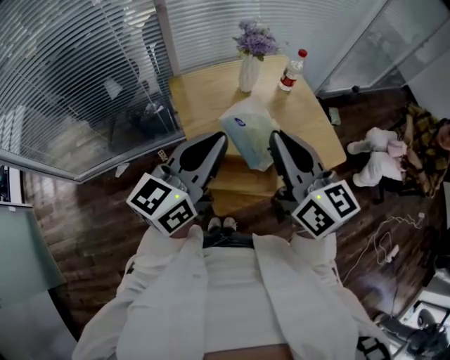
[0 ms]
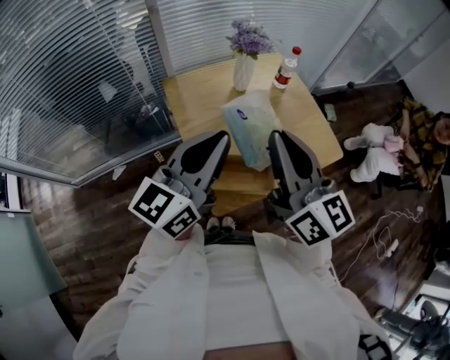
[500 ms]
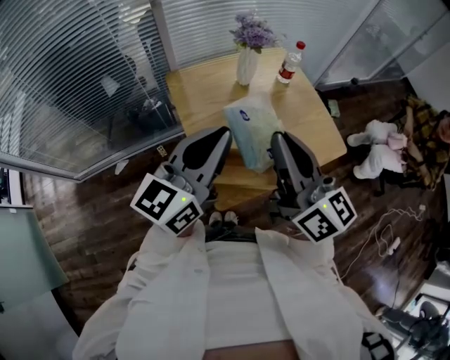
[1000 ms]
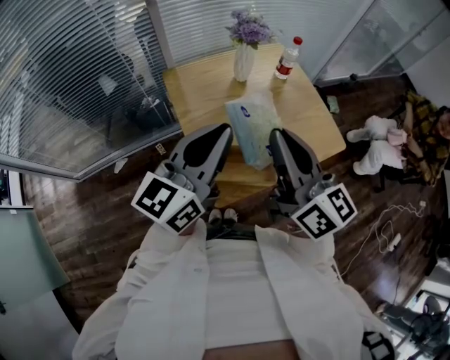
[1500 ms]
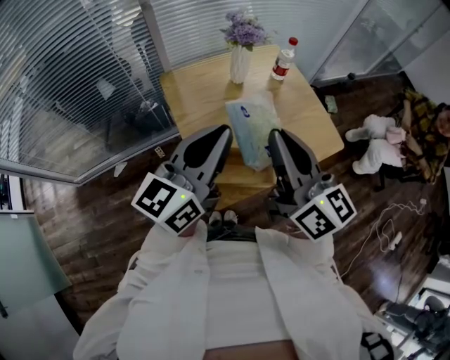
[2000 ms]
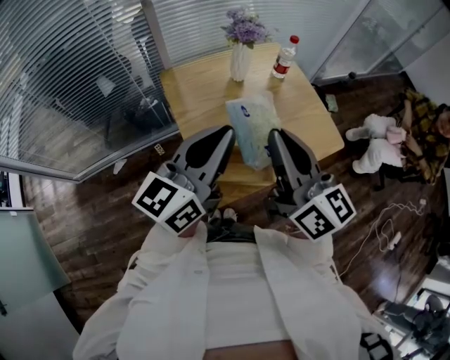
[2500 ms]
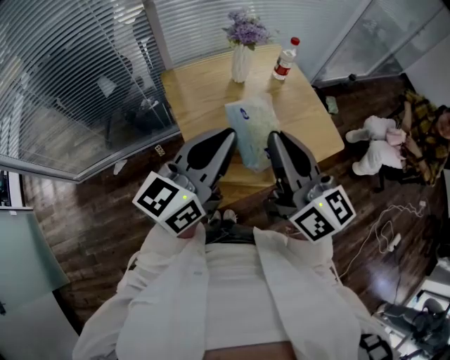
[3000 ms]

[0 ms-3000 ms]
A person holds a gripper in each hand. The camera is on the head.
0 ms to 3000 ms: The grippers move only a little.

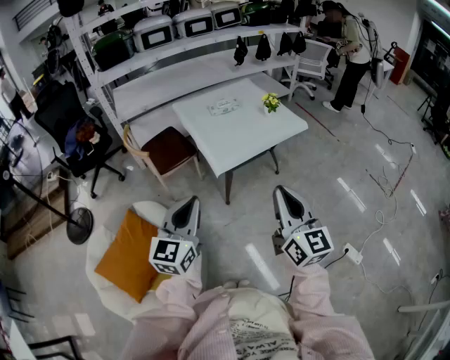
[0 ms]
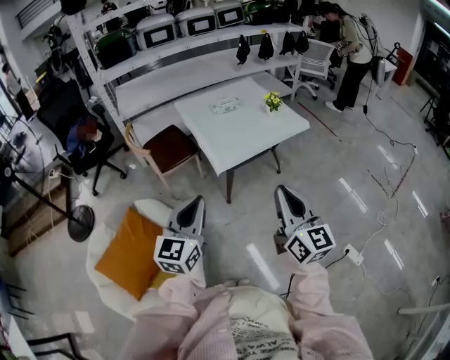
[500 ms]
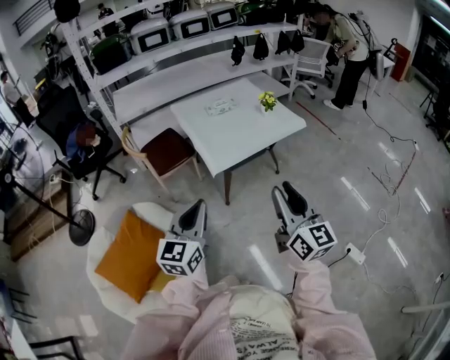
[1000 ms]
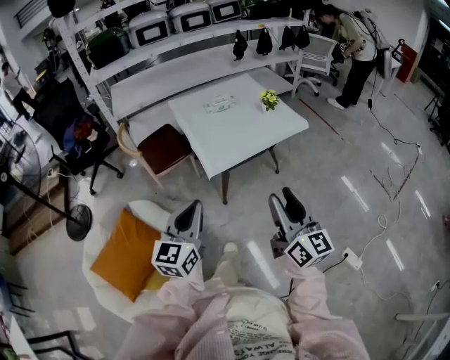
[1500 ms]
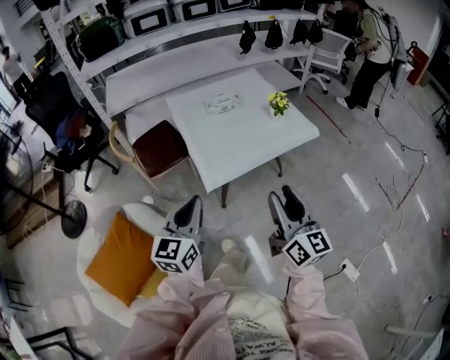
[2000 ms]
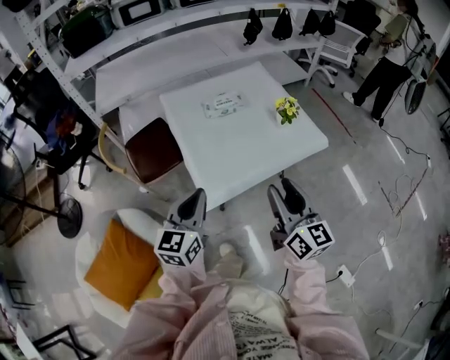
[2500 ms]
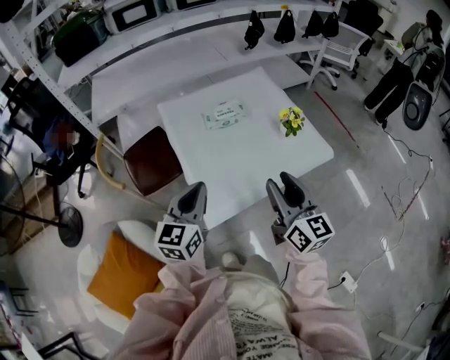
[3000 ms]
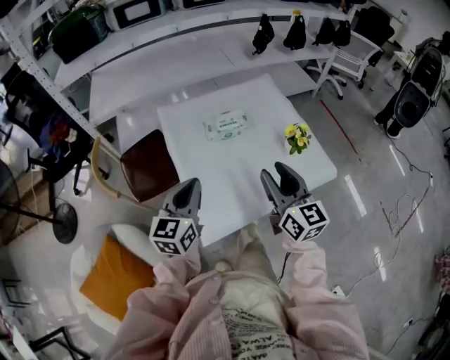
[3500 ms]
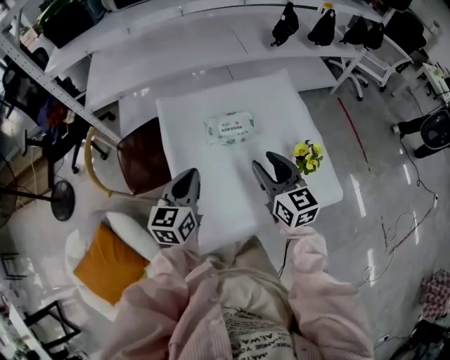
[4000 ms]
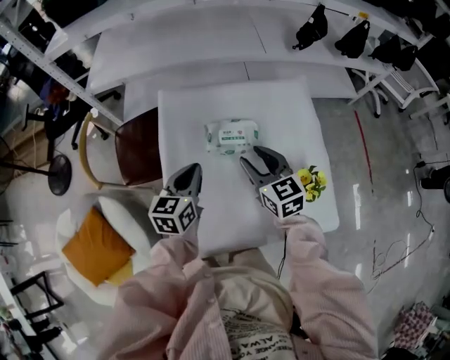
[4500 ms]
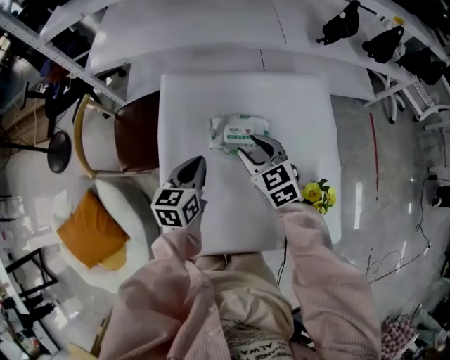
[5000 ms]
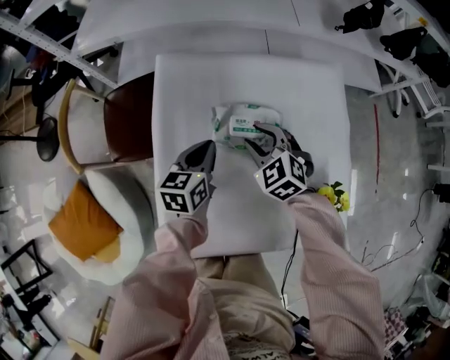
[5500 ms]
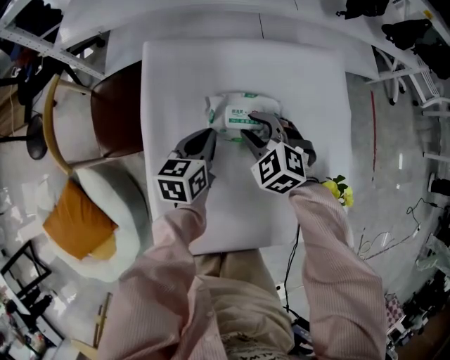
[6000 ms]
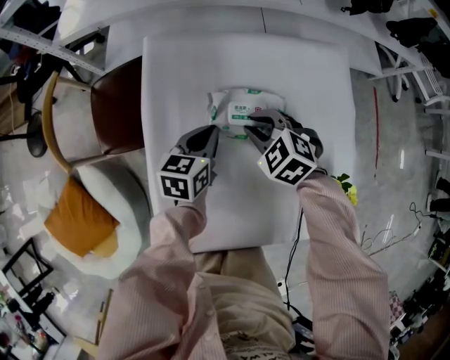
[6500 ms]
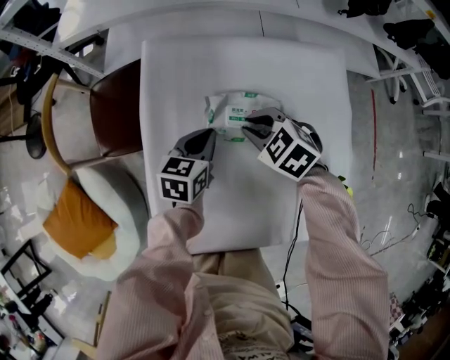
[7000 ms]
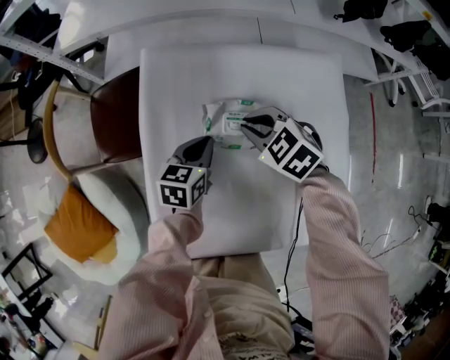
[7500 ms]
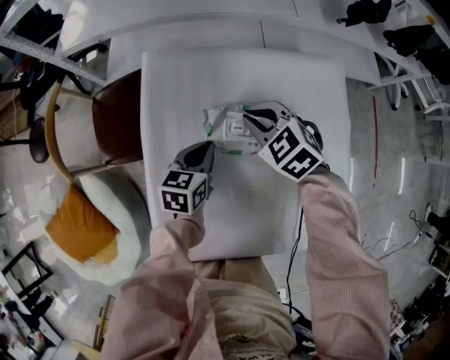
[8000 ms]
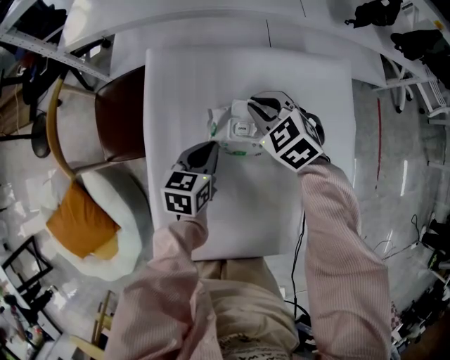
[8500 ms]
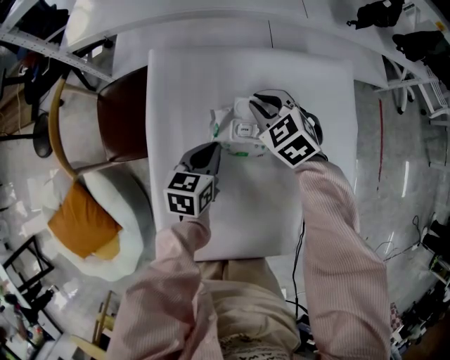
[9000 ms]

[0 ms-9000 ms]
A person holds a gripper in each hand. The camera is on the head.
0 ms to 2000 ms: The two grippers go about 20 cm forward. The right gripper opens.
2000 ms to 4500 ms: The pair of grippers is taken forward, roughly 50 cm. The left gripper changes its angle by about 30 degrees. Meanwhile the right gripper tilts its fingers some 30 degrees downward.
4500 ms to 7000 ms: The grippers both shift downward and forward by approximately 15 cm. The right gripper tilts its fingers some 30 degrees downward, and closes up.
7000 ms to 9000 ms: The right gripper moves forward, some 10 cm.

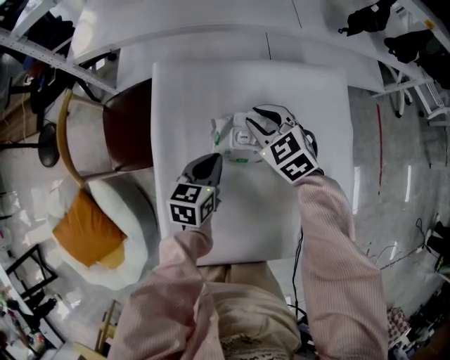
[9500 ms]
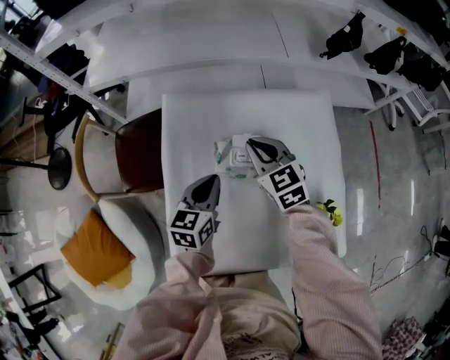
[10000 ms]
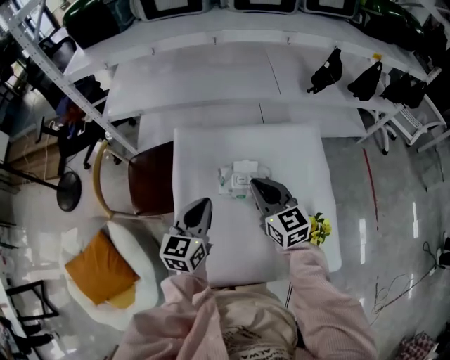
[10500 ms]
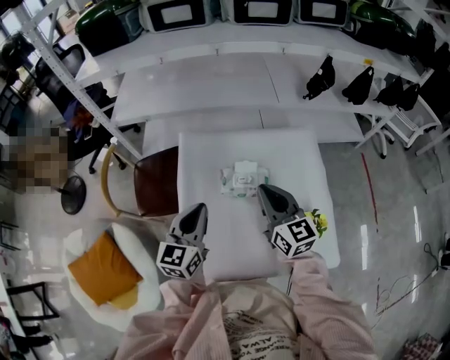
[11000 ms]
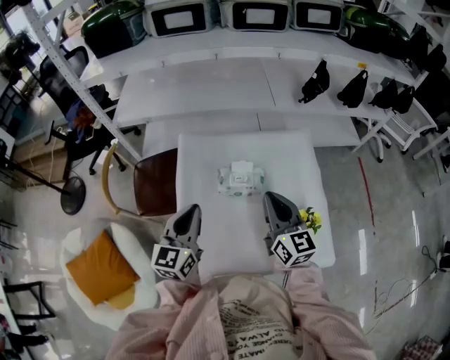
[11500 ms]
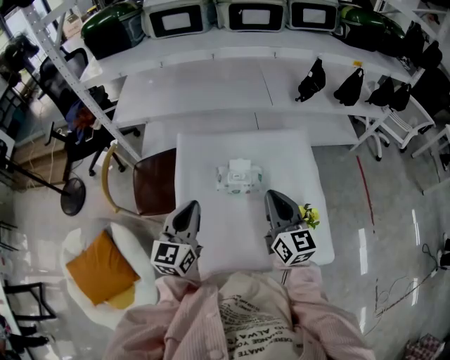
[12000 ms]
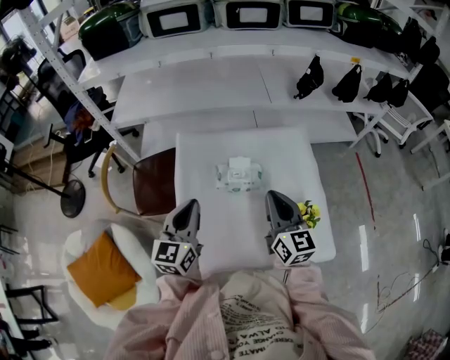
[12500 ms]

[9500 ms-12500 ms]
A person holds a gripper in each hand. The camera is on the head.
9500 ms to 11000 ms: The left gripper heads upward, covering about 25 cm, and rotates some 30 degrees. The right gripper moves upward and backward, roughly 25 cm, angles its fingers upward, by some 30 degrees, and closes its fingers.
11000 ms to 12500 ms: The right gripper is displaced backward by approximately 5 cm.

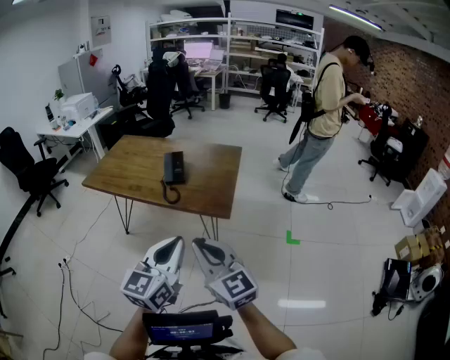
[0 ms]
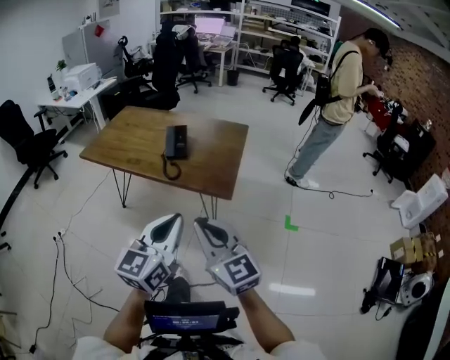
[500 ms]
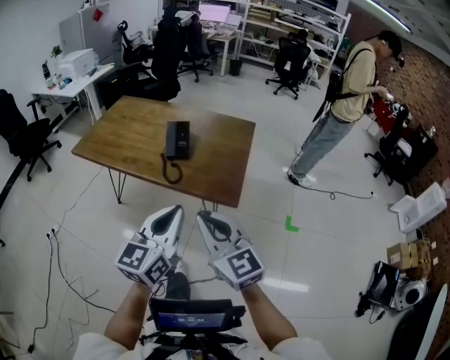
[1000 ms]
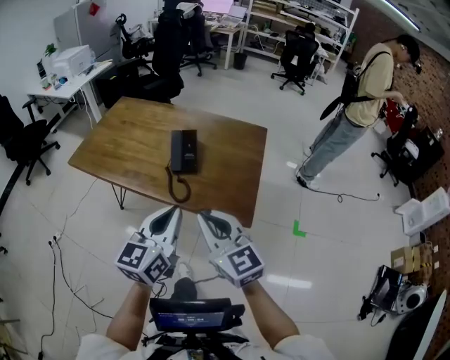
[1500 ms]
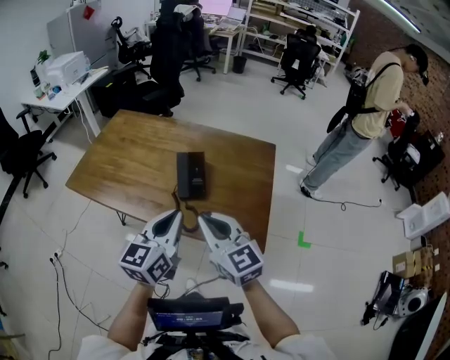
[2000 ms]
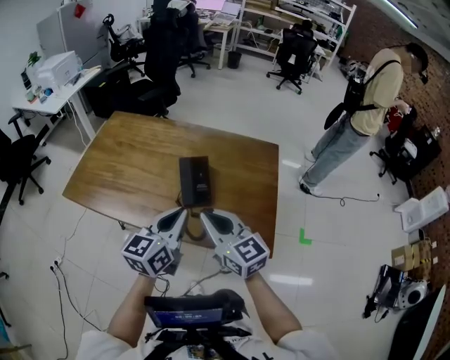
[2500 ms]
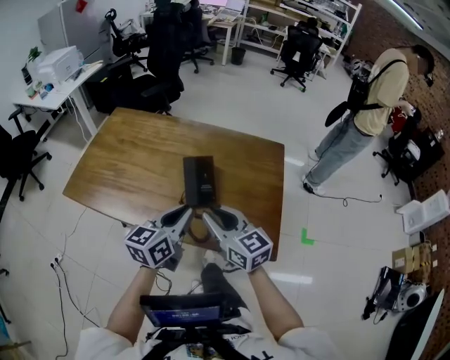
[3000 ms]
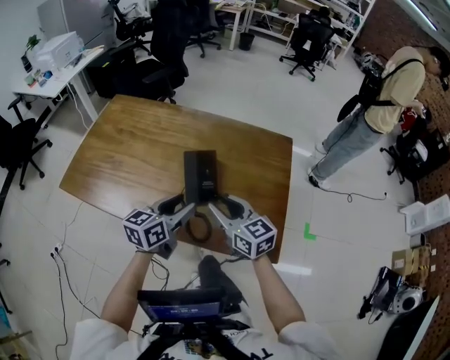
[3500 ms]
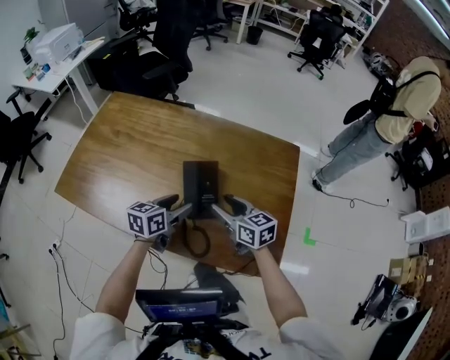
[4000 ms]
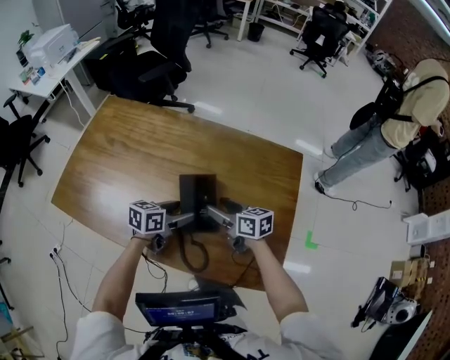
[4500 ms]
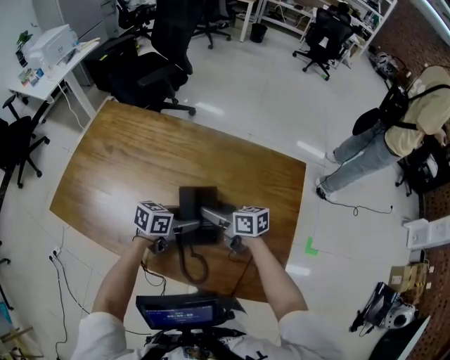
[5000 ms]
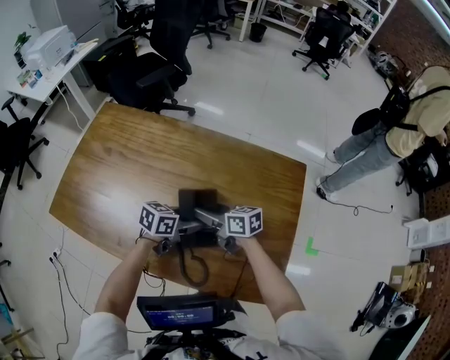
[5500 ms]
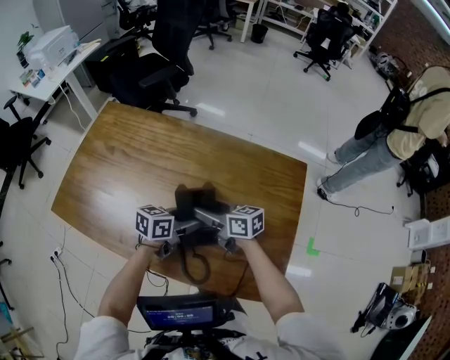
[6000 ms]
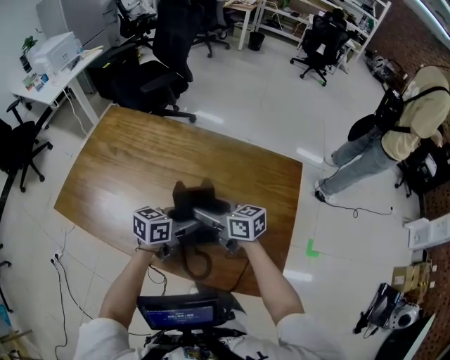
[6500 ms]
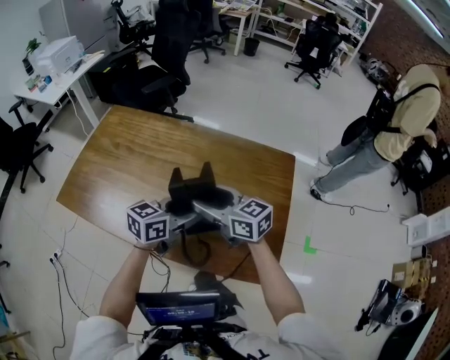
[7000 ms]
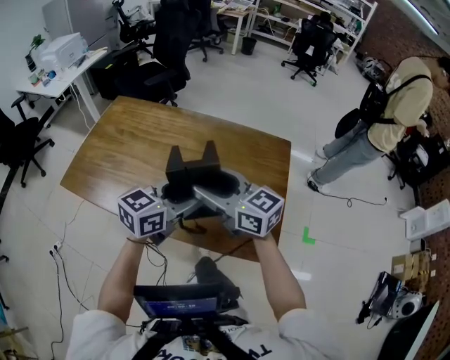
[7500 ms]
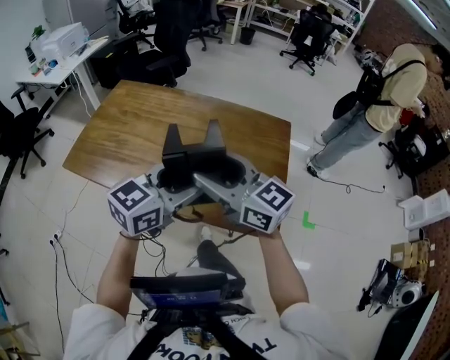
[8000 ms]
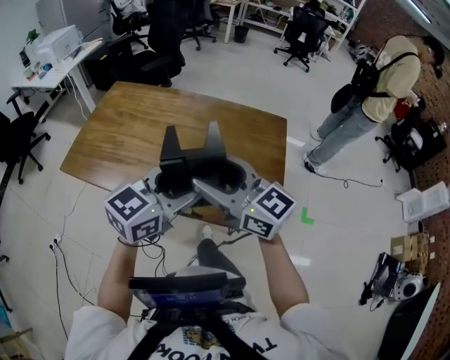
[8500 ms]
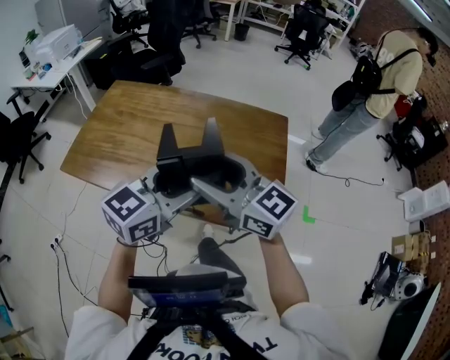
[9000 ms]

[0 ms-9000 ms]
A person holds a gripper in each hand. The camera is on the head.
0 ms to 2000 ms: The grippers both shift forward by about 35 cm.
2000 ms to 4500 ms: The grippers both shift forward and downward by roughly 35 cm. The left gripper changes its angle by roughly 40 degrees, and opens. The right gripper swivels about 40 degrees, and opens its fingers.
4500 ms to 7000 ms: The two grippers go some 15 cm upward. The right gripper swivels about 20 degrees.
7000 ms to 9000 ms: The two grippers go some 20 cm backward and upward. The left gripper turns by some 20 degrees; the right gripper swivels some 20 degrees.

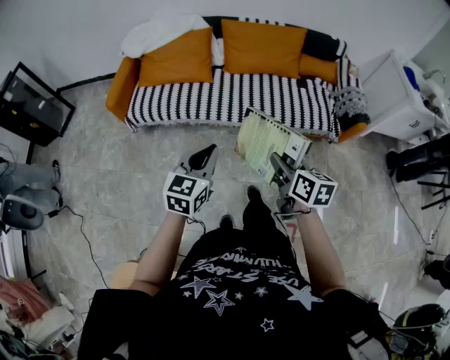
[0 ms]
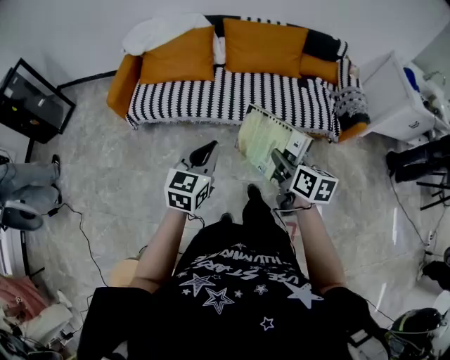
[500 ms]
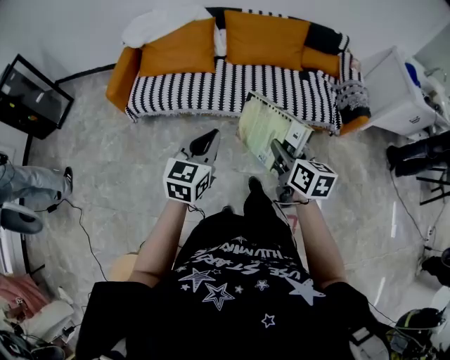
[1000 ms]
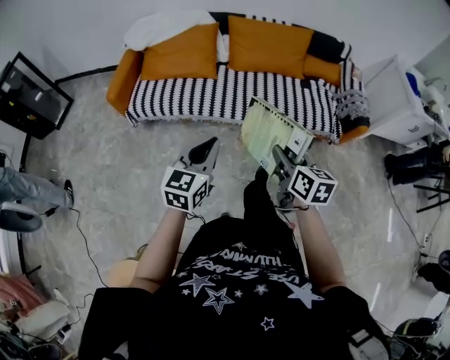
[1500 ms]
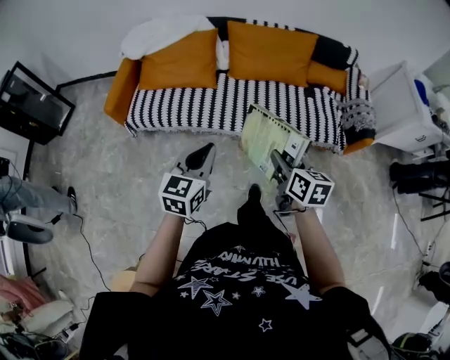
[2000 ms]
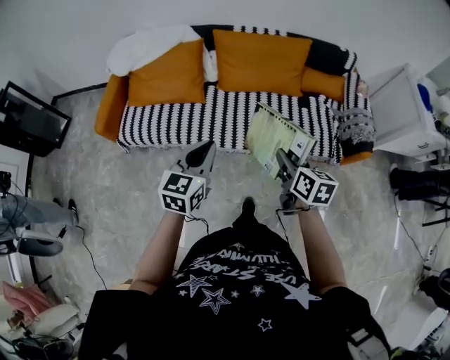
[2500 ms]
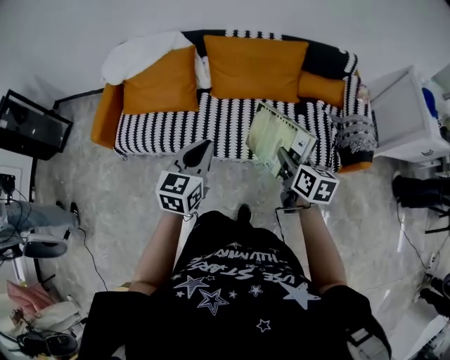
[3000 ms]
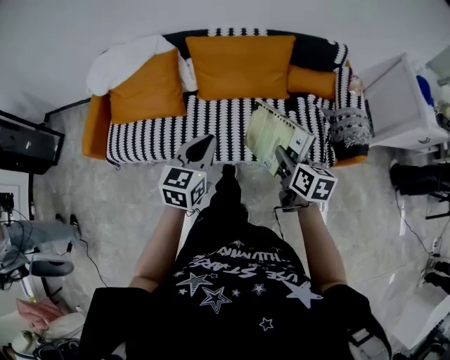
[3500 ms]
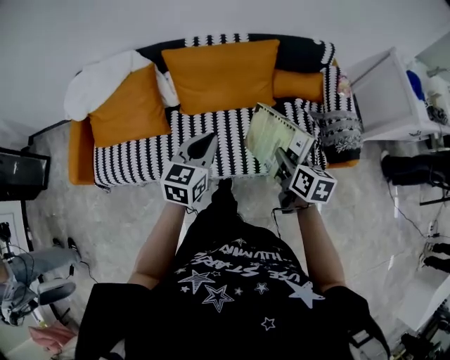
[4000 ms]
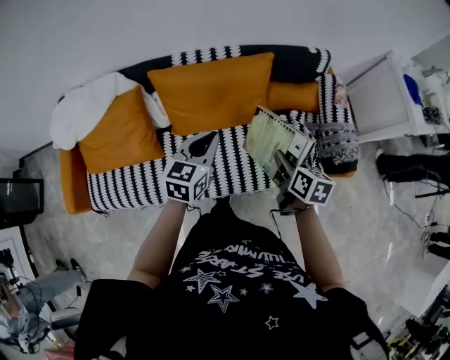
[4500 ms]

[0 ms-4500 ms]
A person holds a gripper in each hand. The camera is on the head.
0 ms to 2000 ms: The grippers both shift forward by approximately 10 cm.
2000 ms to 4500 ms: Both grippers are carried forward and to the right, approximately 50 cm. The right gripper turns by some 20 degrees.
